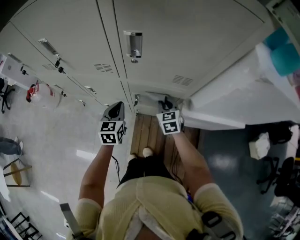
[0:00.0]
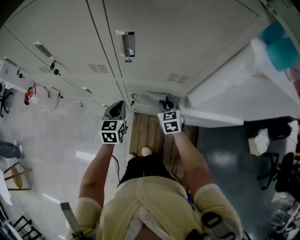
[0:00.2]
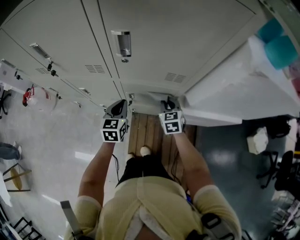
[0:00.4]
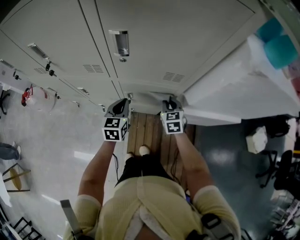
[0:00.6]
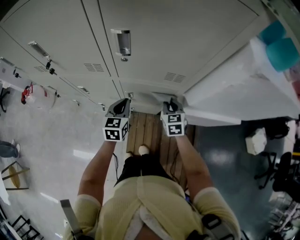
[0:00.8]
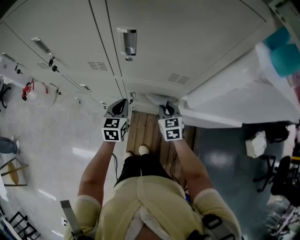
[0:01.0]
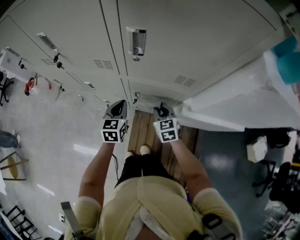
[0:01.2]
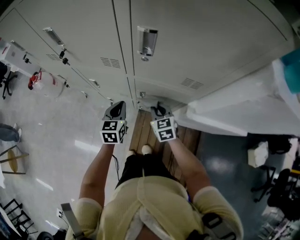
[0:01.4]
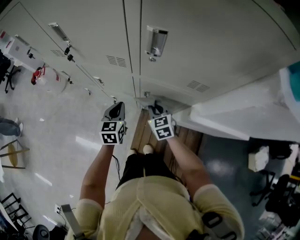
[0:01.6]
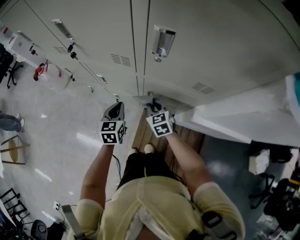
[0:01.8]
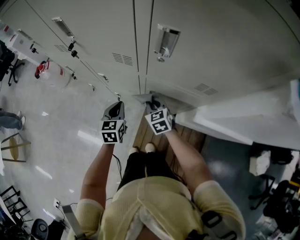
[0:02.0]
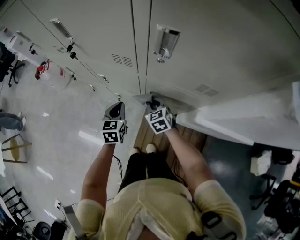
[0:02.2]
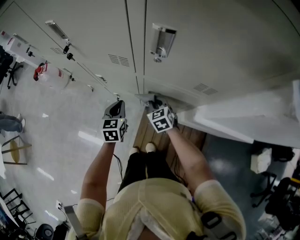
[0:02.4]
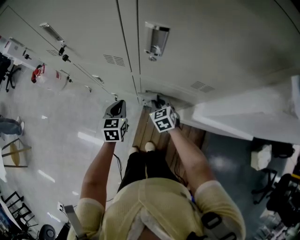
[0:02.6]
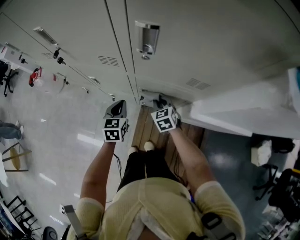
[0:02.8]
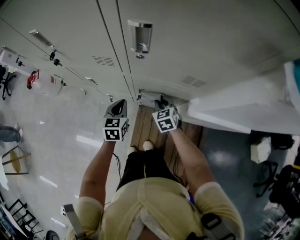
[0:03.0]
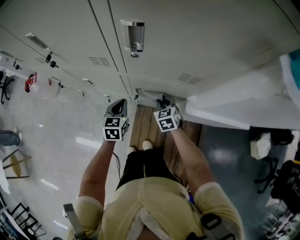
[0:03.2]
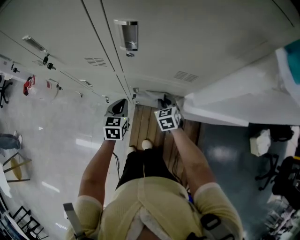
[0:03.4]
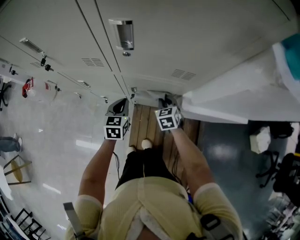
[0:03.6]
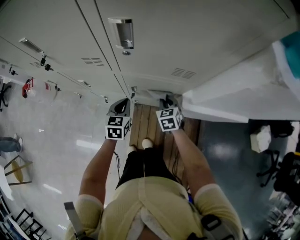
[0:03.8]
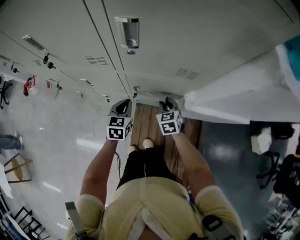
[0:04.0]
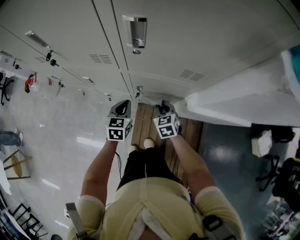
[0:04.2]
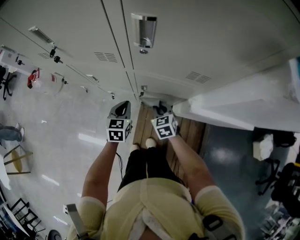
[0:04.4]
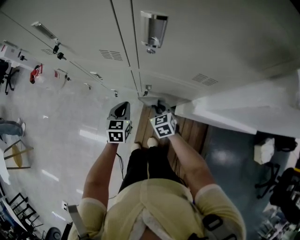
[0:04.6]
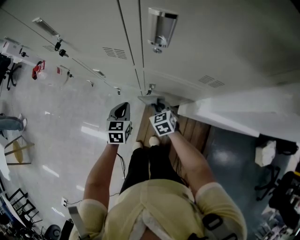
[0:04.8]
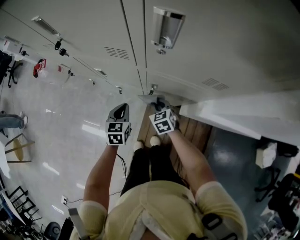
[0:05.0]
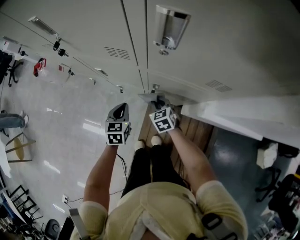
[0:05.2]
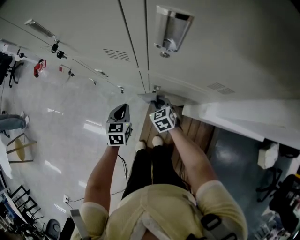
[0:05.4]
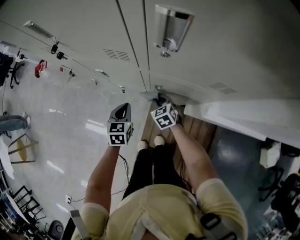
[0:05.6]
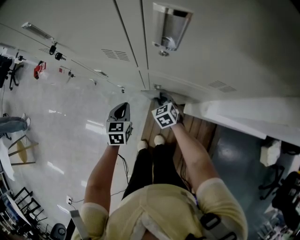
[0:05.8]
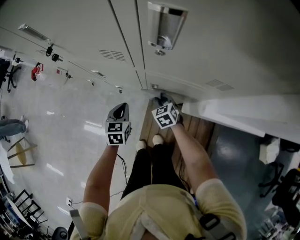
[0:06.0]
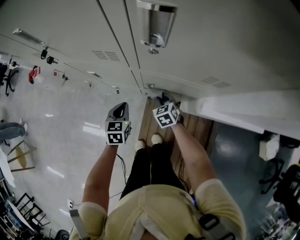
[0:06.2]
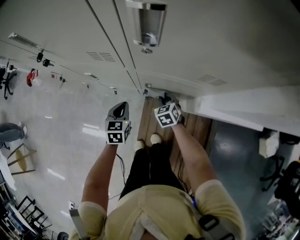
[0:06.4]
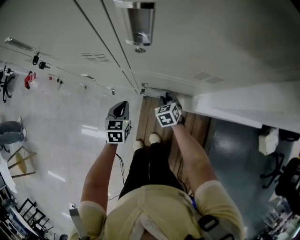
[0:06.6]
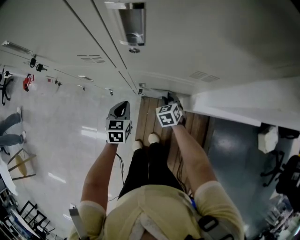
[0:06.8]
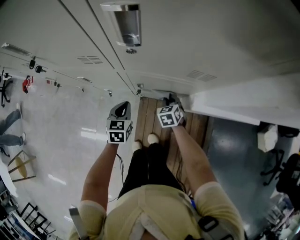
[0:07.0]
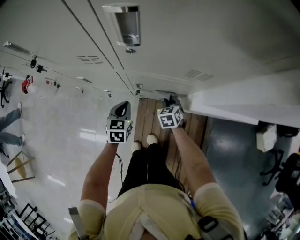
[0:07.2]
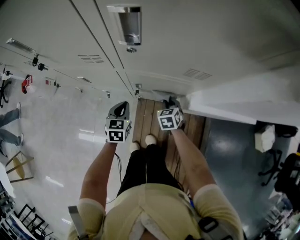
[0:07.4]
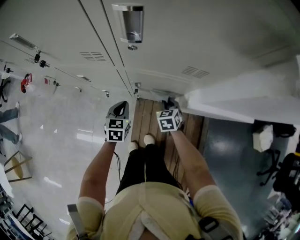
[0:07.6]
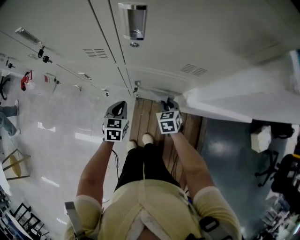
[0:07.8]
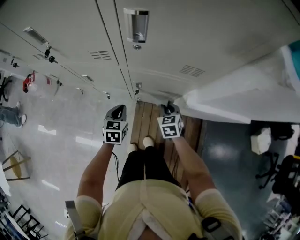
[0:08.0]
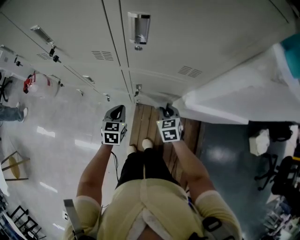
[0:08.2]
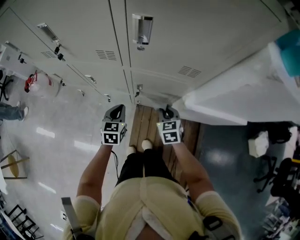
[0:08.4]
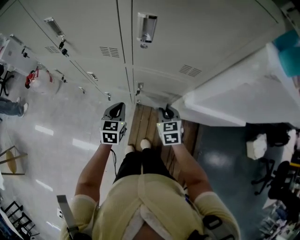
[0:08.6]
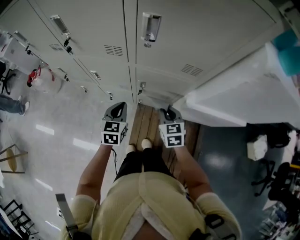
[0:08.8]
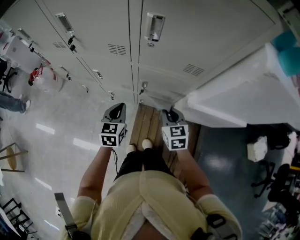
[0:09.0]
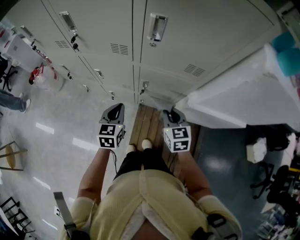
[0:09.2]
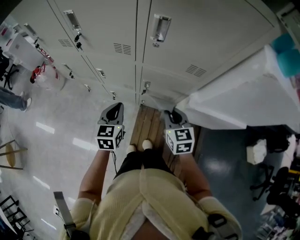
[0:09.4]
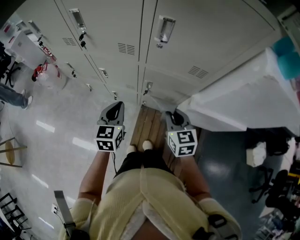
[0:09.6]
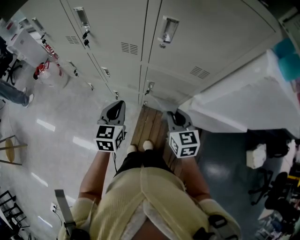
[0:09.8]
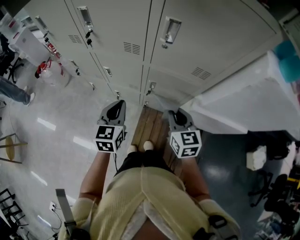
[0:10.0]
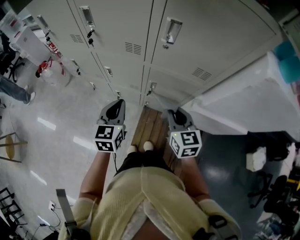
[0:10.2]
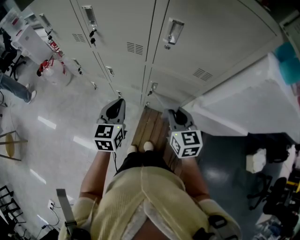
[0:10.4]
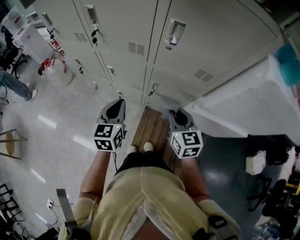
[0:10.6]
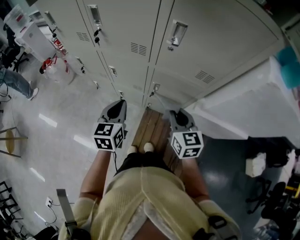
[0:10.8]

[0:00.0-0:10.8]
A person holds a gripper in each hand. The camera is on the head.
0:00.0 to 0:01.6: The right gripper travels to the left by approximately 10 cm. The left gripper changes place by roughly 5 cm.
0:01.6 to 0:03.0: The right gripper moves to the right and downward, some 10 cm; the left gripper changes place by approximately 5 cm.
0:03.0 to 0:04.6: The right gripper ends up about 5 cm from where it was.
0:04.6 to 0:06.2: The right gripper travels downward by roughly 5 cm.
0:06.2 to 0:07.8: The right gripper goes some 10 cm to the right and upward, while the left gripper travels to the right by about 5 cm.
0:07.8 to 0:09.2: The grippers both shift upward and backward by approximately 15 cm. The right gripper rotates some 20 degrees.
0:09.2 to 0:10.8: Both grippers travel together upward, roughly 10 cm.

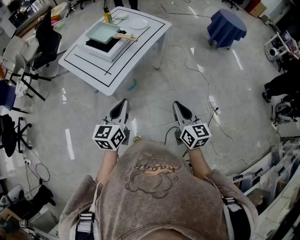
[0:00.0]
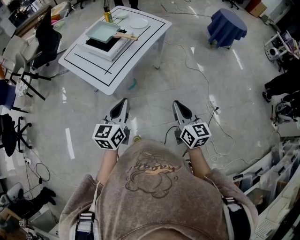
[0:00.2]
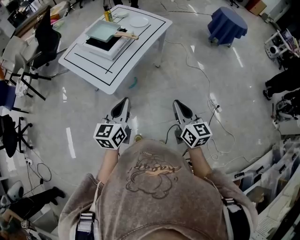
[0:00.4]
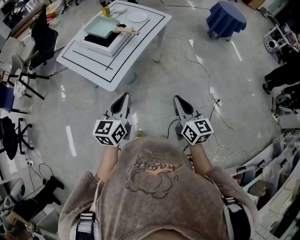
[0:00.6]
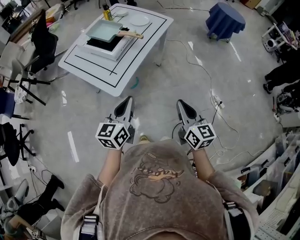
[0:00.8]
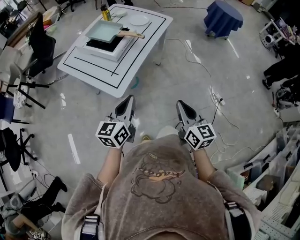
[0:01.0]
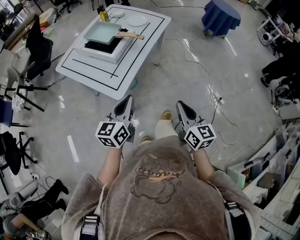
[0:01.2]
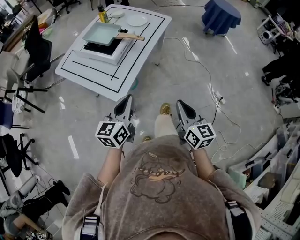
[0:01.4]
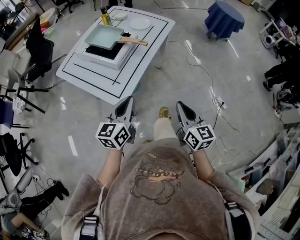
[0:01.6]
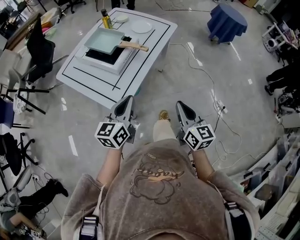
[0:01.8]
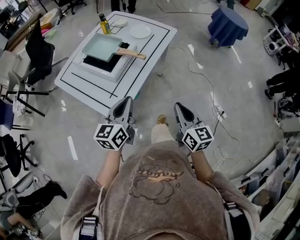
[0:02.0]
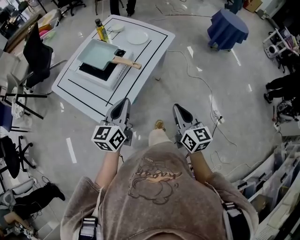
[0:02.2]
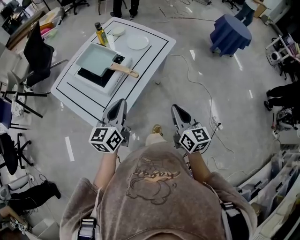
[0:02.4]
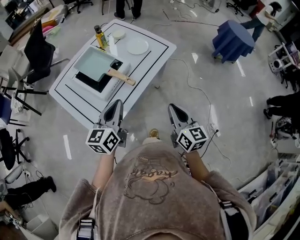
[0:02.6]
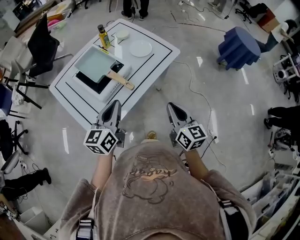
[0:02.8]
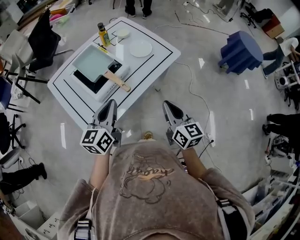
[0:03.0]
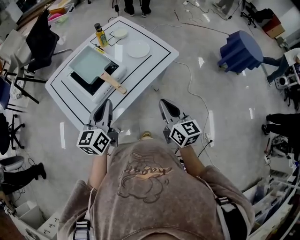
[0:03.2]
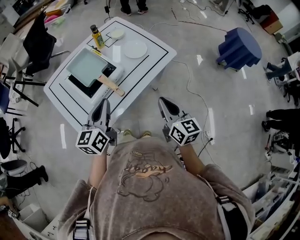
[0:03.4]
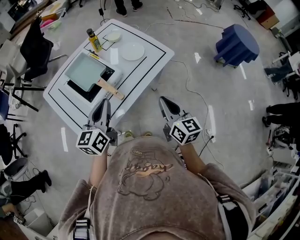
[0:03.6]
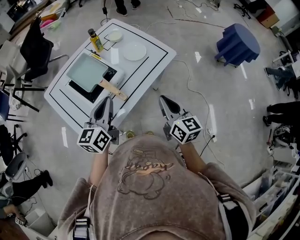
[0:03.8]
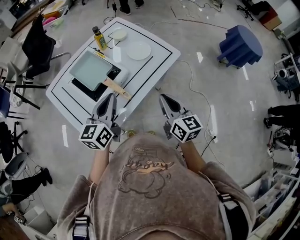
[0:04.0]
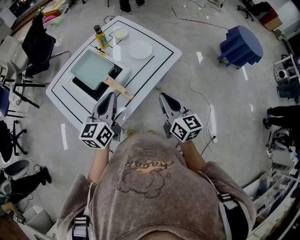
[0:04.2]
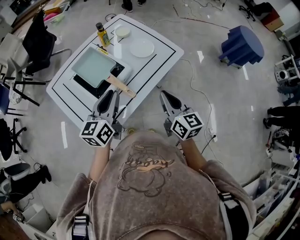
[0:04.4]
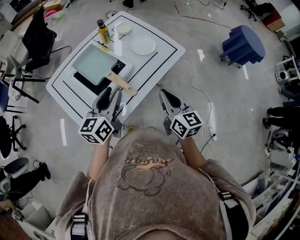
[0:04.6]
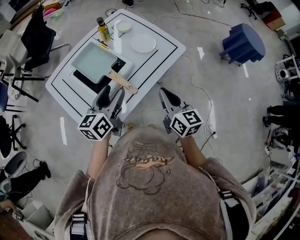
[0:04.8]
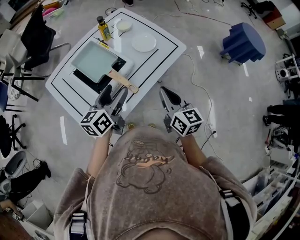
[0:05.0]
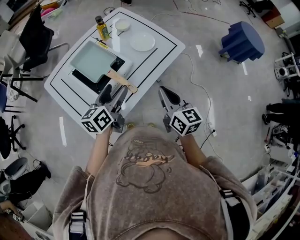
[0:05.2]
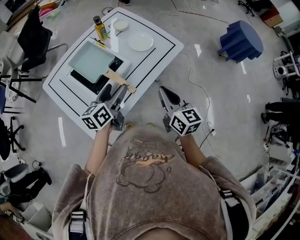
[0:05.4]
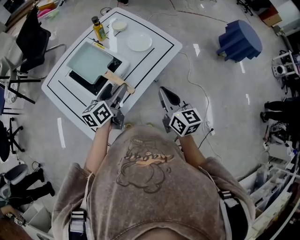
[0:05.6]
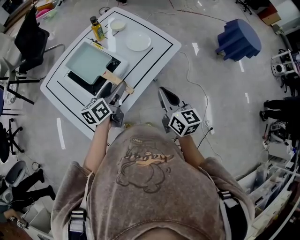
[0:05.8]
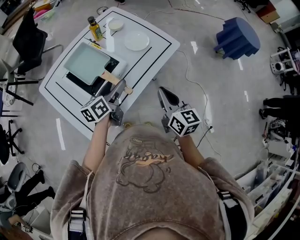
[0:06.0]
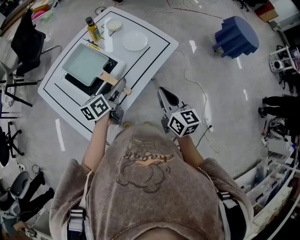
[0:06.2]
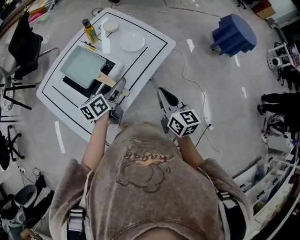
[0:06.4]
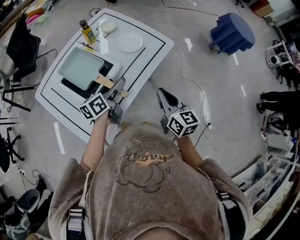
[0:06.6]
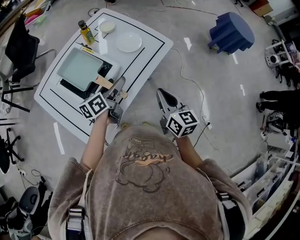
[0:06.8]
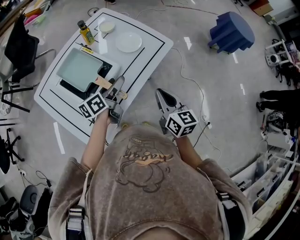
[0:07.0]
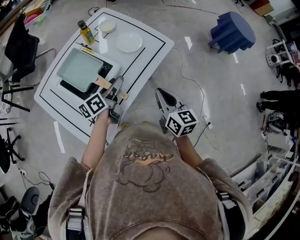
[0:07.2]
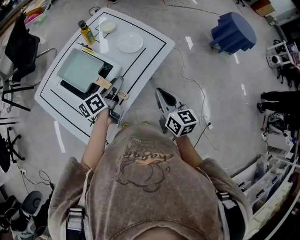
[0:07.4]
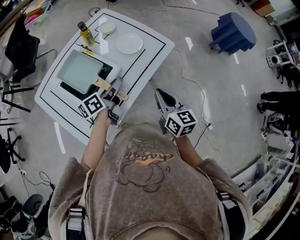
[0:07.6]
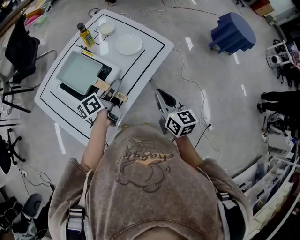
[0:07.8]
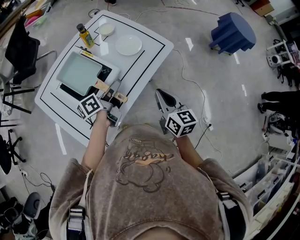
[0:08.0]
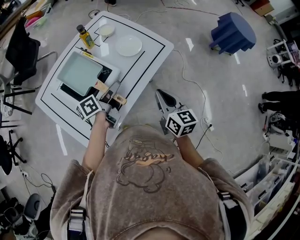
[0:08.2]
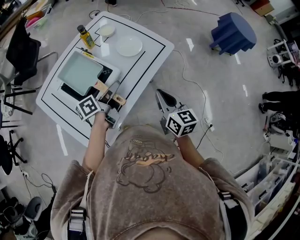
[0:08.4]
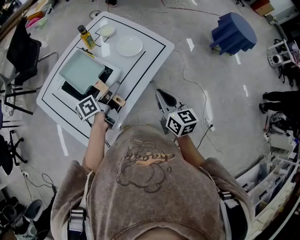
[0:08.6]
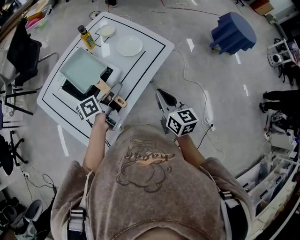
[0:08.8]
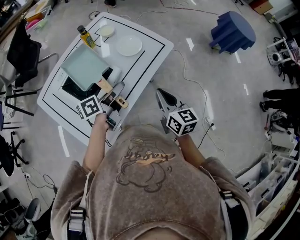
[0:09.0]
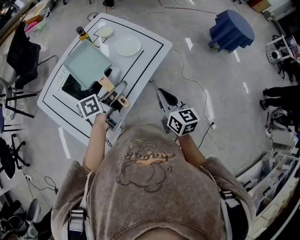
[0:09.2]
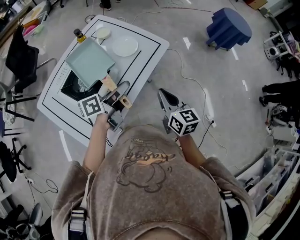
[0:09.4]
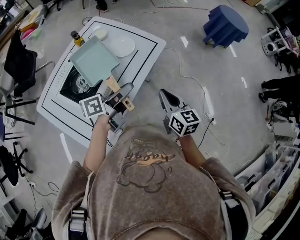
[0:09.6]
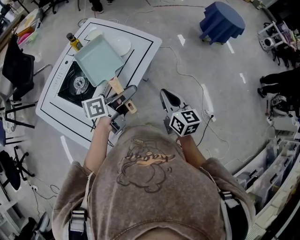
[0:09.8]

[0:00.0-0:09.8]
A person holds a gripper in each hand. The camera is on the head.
0:00.0 to 0:01.4: The right gripper is displaced to the left by some 5 cm; the left gripper goes approximately 10 cm forward and to the left.
0:01.4 to 0:02.8: The two grippers go approximately 25 cm forward.
0:02.8 to 0:04.2: Both grippers travel together forward, about 10 cm.
0:04.2 to 0:05.6: The left gripper moves downward, some 10 cm, changes its angle by about 20 degrees, and opens up.
0:05.6 to 0:07.0: The left gripper moves forward, about 5 cm.
0:07.0 to 0:08.4: The left gripper closes.
0:08.4 to 0:09.8: The right gripper is displaced to the right by roughly 5 cm. Meanwhile the left gripper travels to the right and upward by approximately 15 cm, and rotates some 30 degrees.

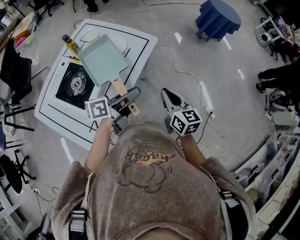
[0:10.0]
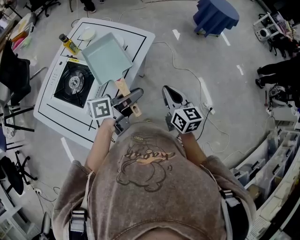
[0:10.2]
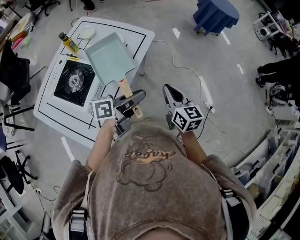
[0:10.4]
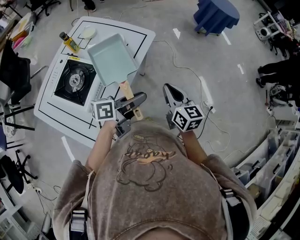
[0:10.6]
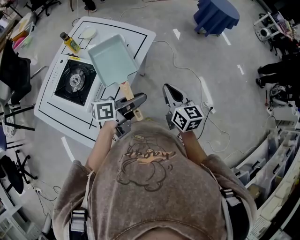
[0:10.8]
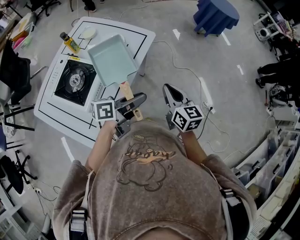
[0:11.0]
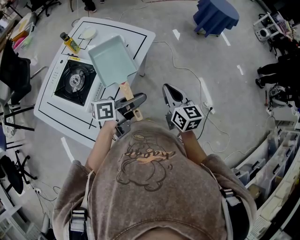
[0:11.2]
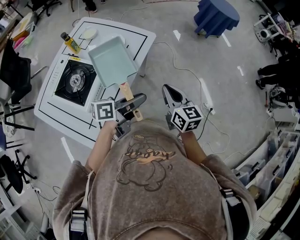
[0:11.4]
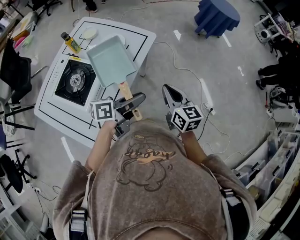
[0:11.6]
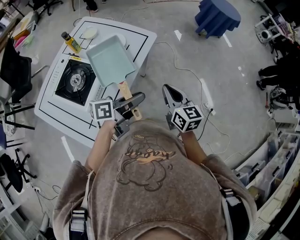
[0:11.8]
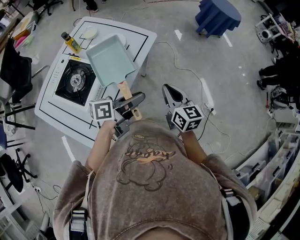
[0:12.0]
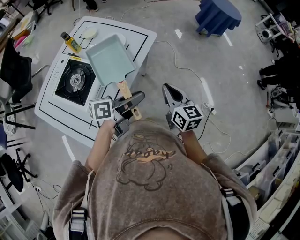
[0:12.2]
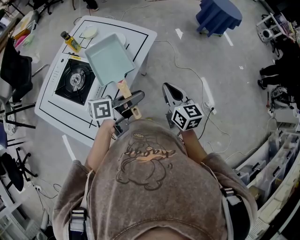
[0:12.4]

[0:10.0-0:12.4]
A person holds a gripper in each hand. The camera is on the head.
0:10.0 to 0:11.2: The left gripper moves roughly 5 cm.
0:11.2 to 0:12.4: The grippers move only a little.

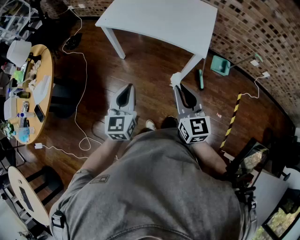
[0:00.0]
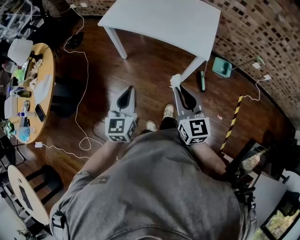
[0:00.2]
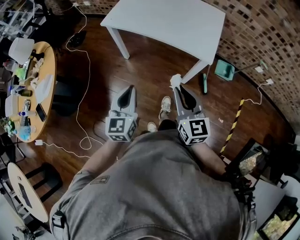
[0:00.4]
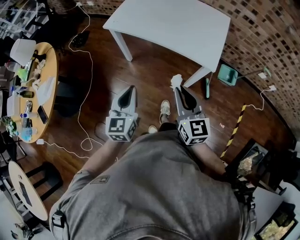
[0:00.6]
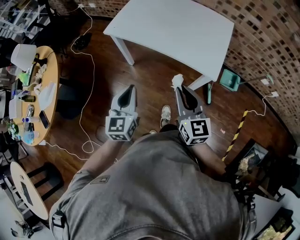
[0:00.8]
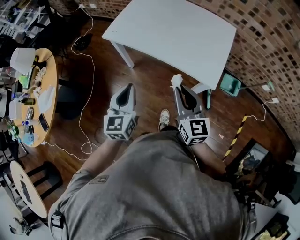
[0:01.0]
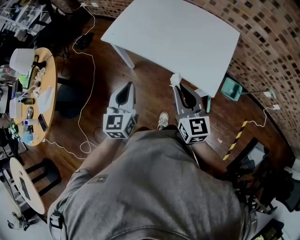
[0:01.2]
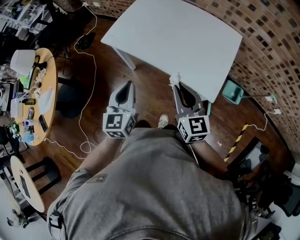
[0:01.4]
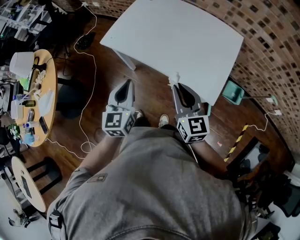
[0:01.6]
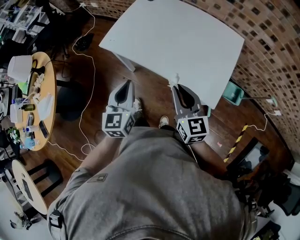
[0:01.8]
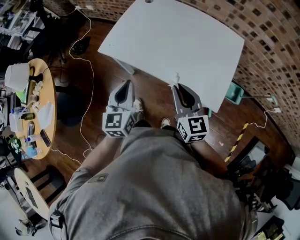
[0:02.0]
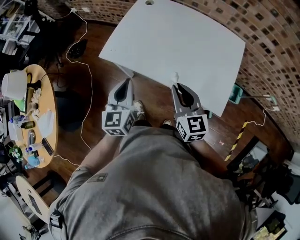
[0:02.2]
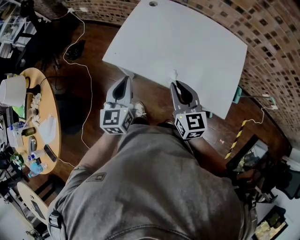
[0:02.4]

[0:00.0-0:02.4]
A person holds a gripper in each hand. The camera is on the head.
0:00.0 to 0:01.2: Both grippers travel together forward, approximately 20 cm.
0:01.2 to 0:02.4: The left gripper moves forward, about 20 cm; the right gripper shifts roughly 20 cm forward and to the left.
